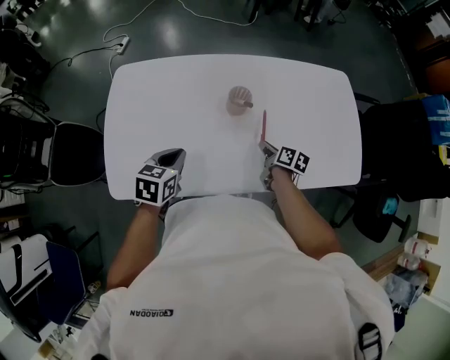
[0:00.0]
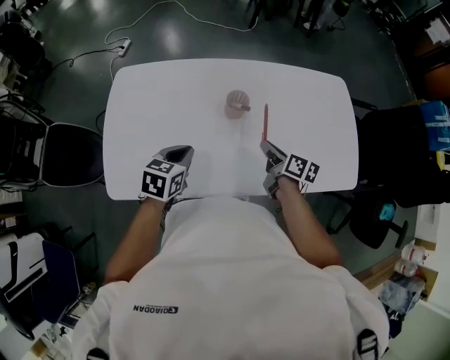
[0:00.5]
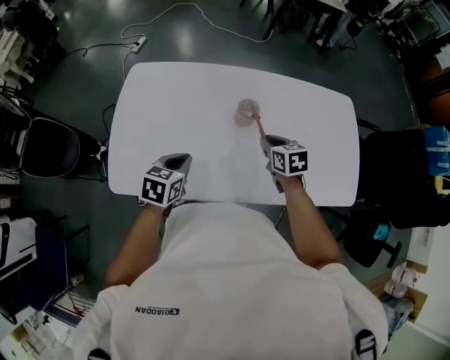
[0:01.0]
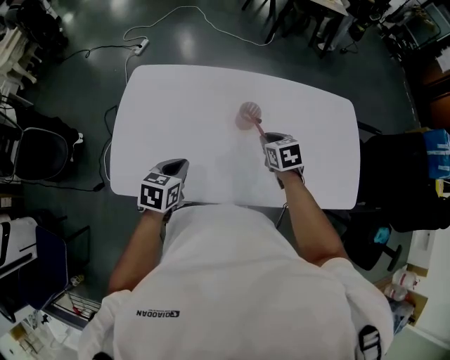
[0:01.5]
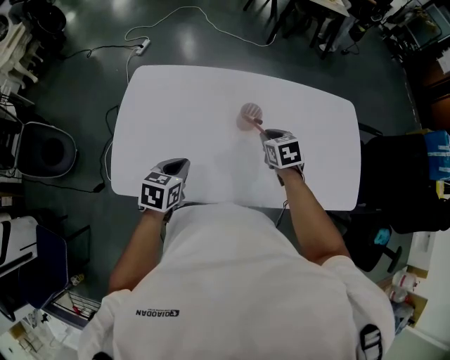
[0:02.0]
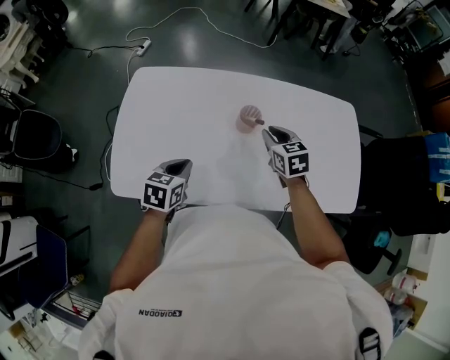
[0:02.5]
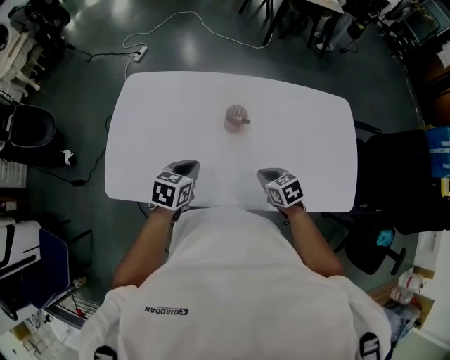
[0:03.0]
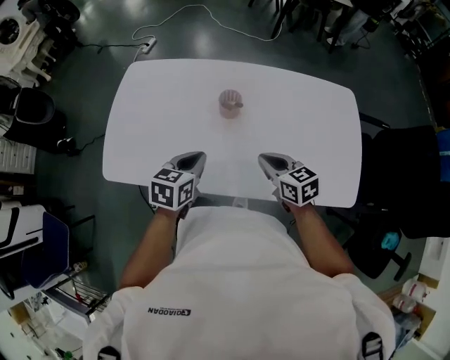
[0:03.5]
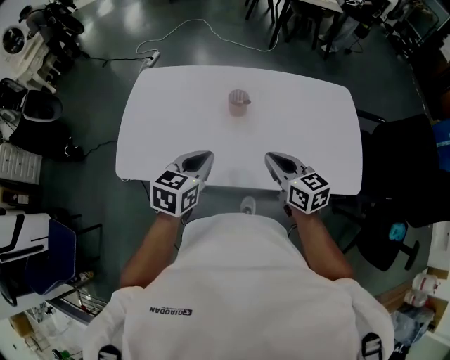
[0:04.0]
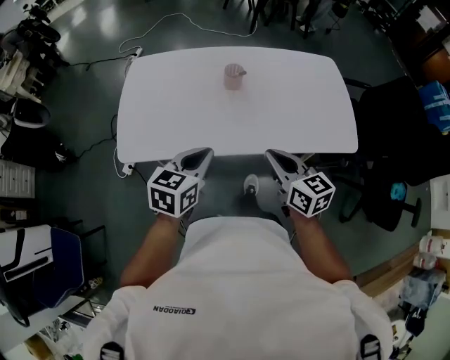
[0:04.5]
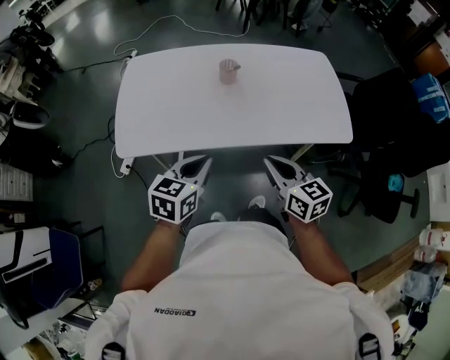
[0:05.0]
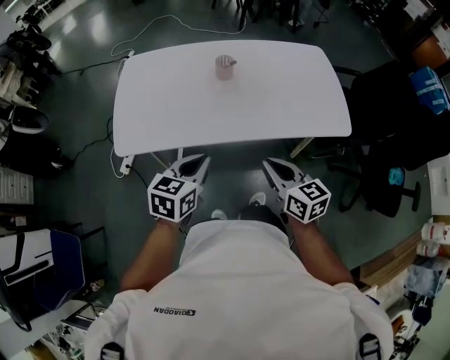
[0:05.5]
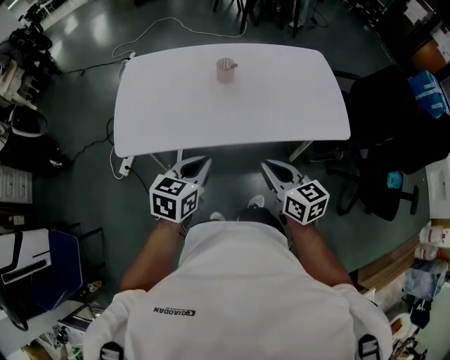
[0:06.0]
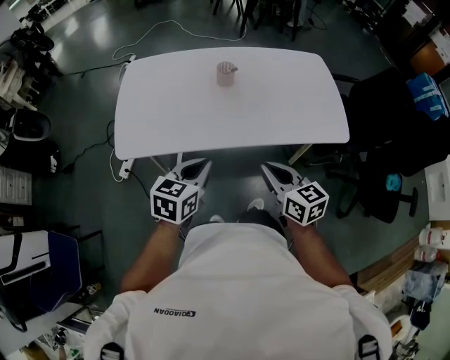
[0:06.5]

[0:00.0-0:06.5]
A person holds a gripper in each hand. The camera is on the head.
0:00.0 to 0:02.0: The right gripper shifts roughly 15 cm upward, to the left and forward, and twists roughly 60 degrees counterclockwise, seen from behind.
0:02.0 to 0:04.5: The left gripper is displaced backward, upward and to the right by approximately 25 cm; the right gripper travels backward and upward by some 35 cm, and tilts its fingers approximately 30 degrees upward.
0:04.5 to 0:06.5: Both grippers travel together backward, about 5 cm.

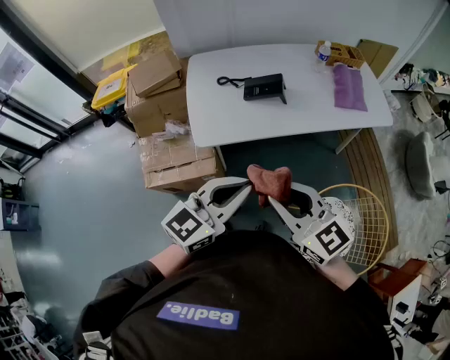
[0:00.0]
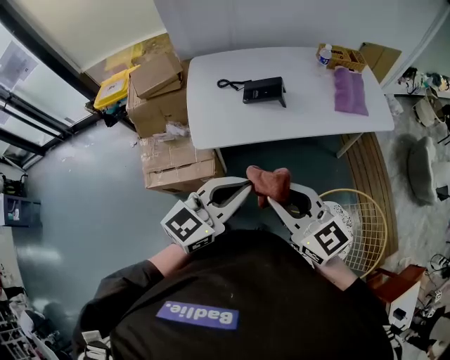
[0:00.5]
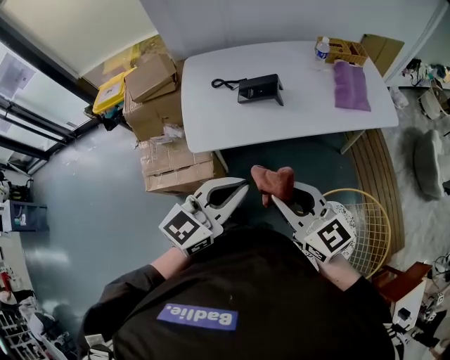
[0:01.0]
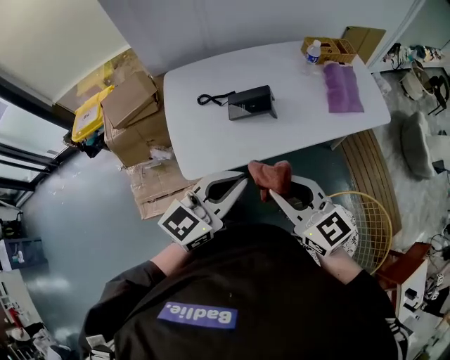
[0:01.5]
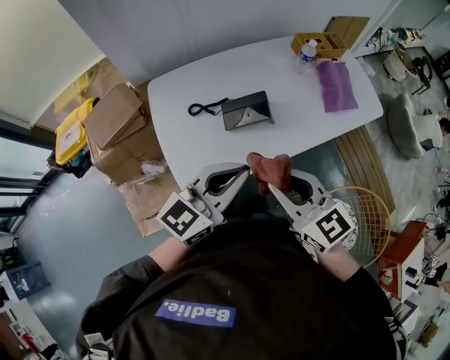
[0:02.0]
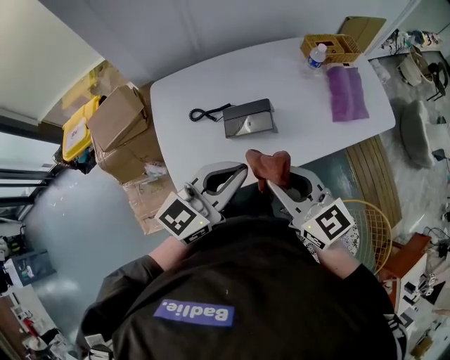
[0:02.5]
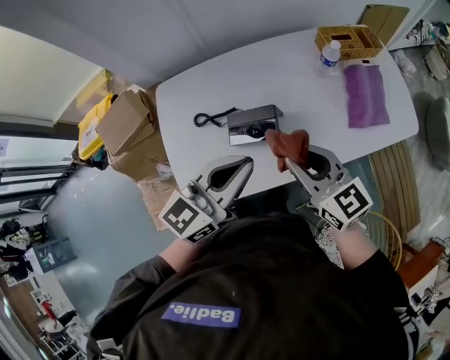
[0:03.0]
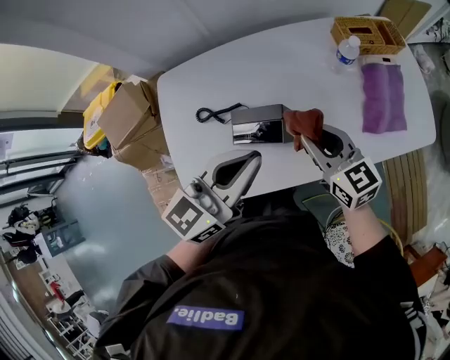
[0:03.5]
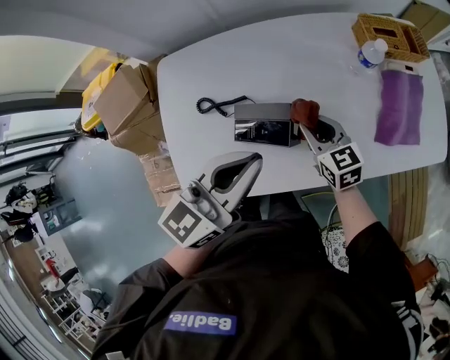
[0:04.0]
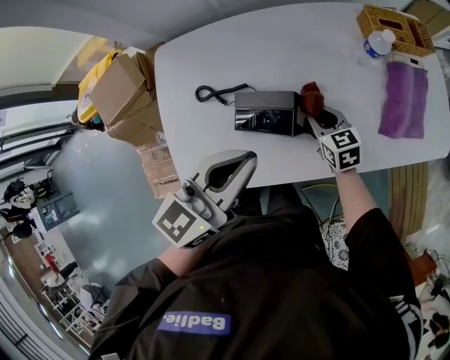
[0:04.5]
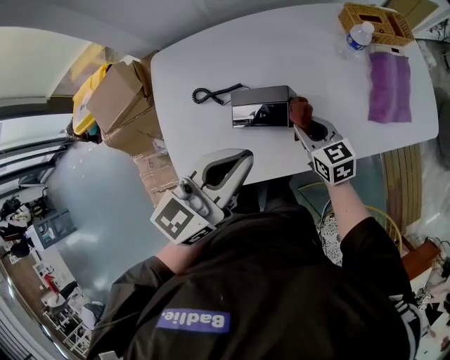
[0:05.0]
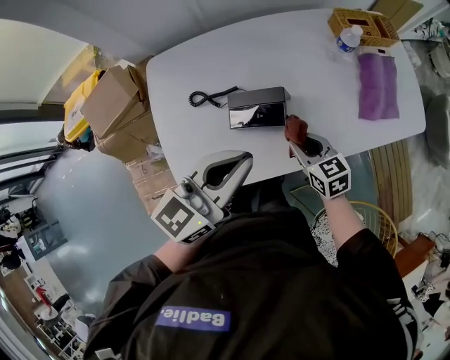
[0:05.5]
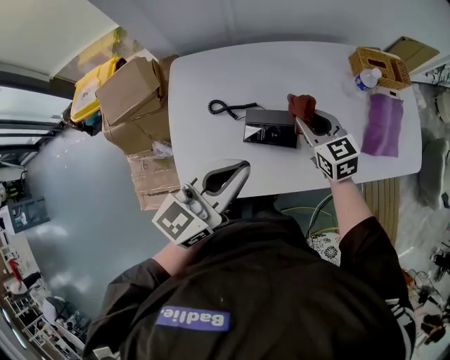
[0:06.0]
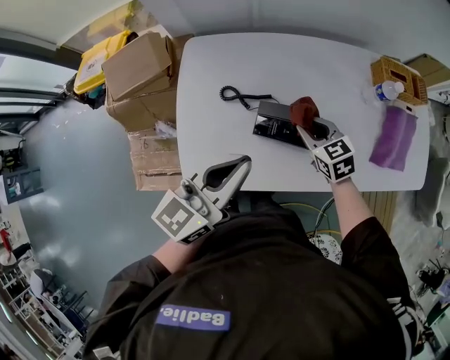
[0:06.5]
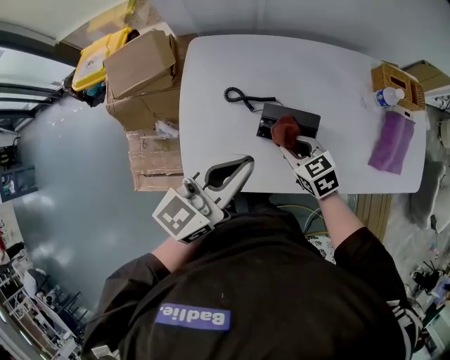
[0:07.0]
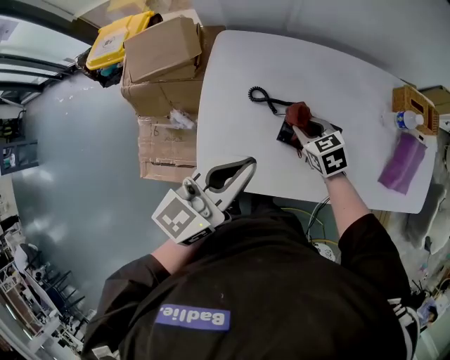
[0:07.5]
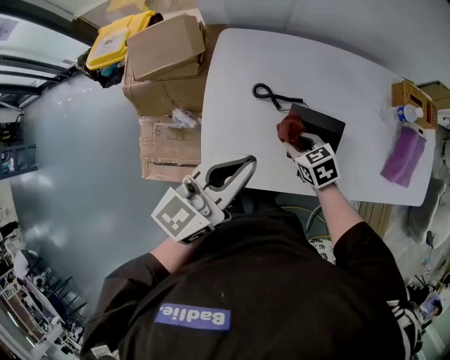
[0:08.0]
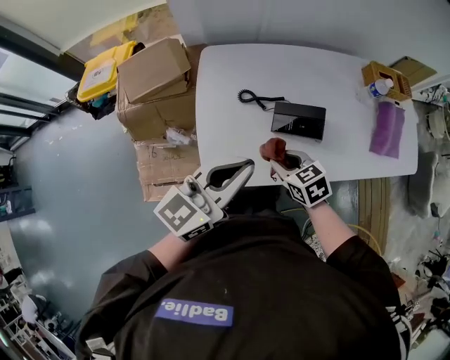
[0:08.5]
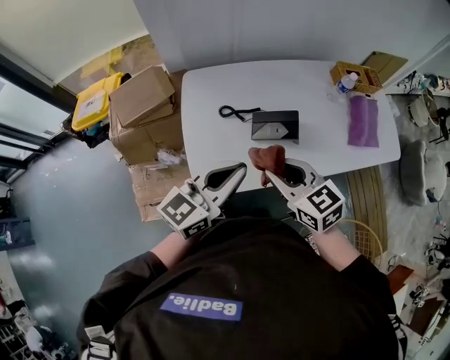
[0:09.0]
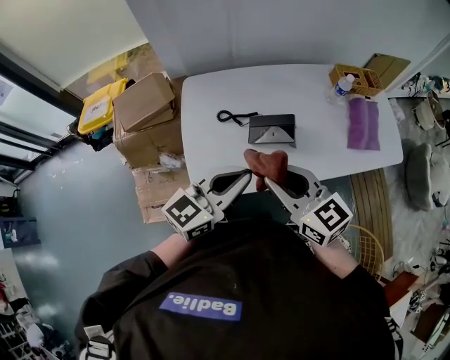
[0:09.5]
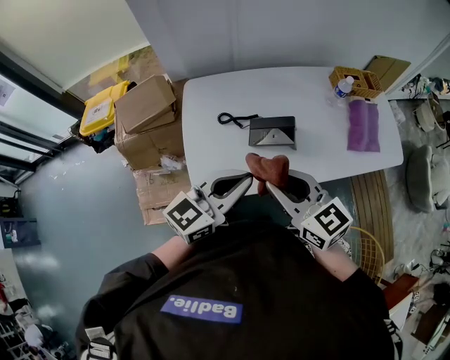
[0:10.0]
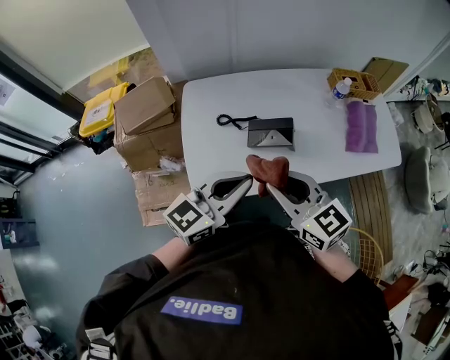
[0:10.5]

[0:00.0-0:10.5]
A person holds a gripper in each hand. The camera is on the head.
0:00.0 to 0:02.0: Both grippers move forward, about 25 cm.
0:02.0 to 0:04.0: The right gripper heads forward and downward, covering roughly 40 cm. Meanwhile the left gripper goes roughly 20 cm forward.
0:04.0 to 0:06.5: The right gripper swings up and down, roughly 15 cm each way, with 2 reversals, and changes its angle by roughly 20 degrees. Meanwhile the left gripper heads to the left, covering about 10 cm.
0:06.5 to 0:08.5: The right gripper is displaced to the left and backward by approximately 20 cm; the left gripper moves to the left and backward, some 10 cm.
0:08.5 to 0:10.5: The right gripper shifts approximately 20 cm upward, and tilts its fingers roughly 30 degrees upward. The left gripper is displaced to the right by some 10 cm.

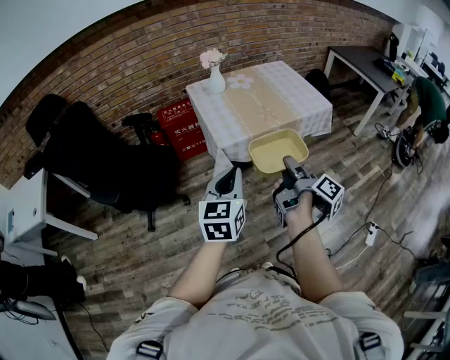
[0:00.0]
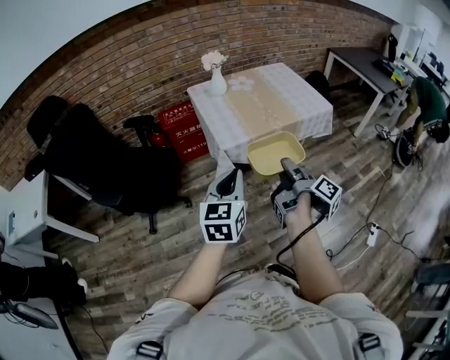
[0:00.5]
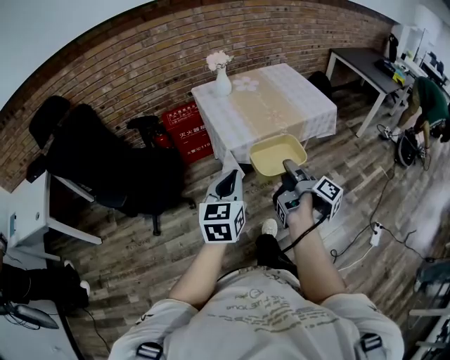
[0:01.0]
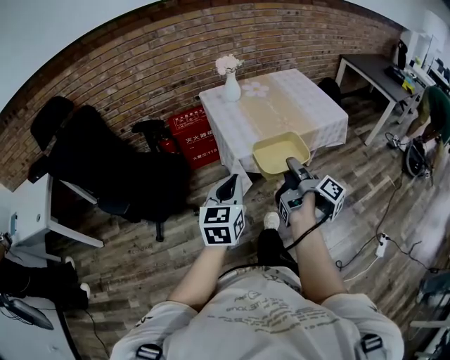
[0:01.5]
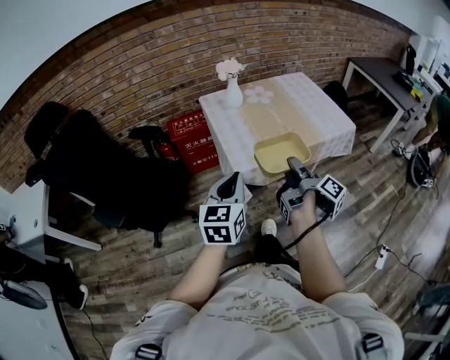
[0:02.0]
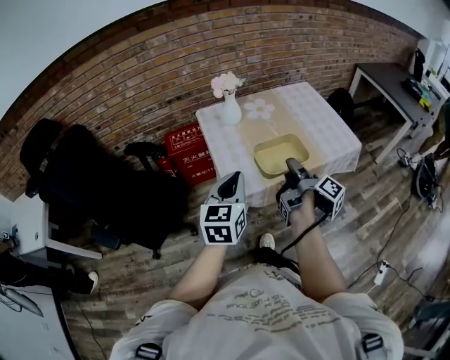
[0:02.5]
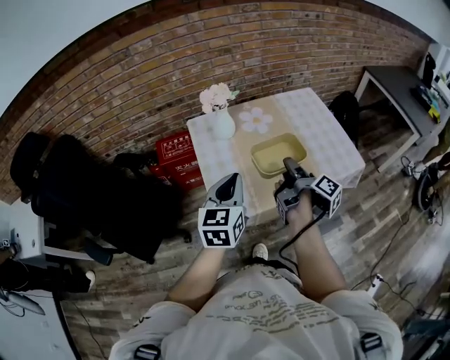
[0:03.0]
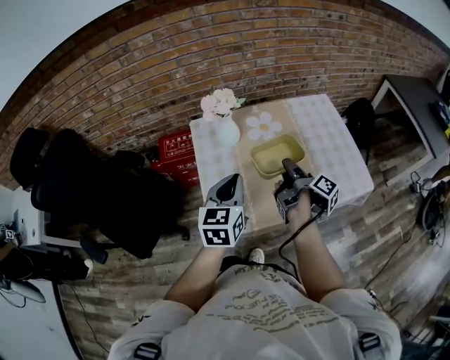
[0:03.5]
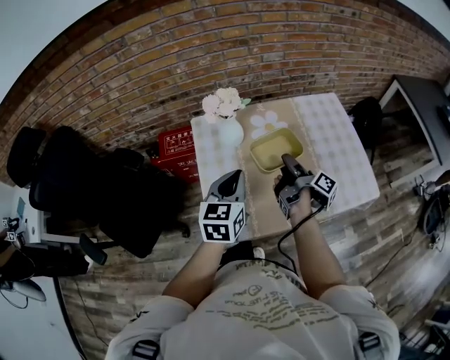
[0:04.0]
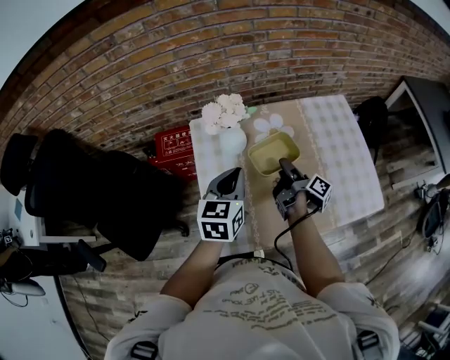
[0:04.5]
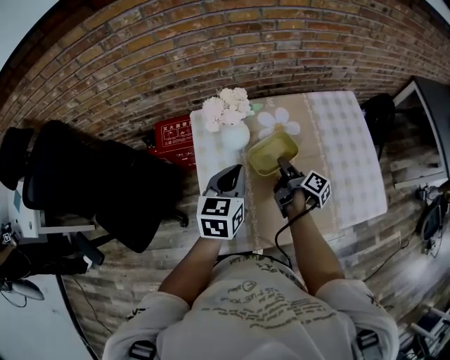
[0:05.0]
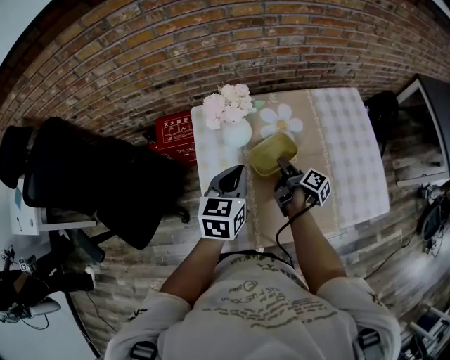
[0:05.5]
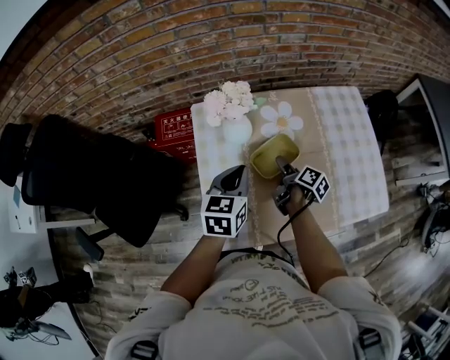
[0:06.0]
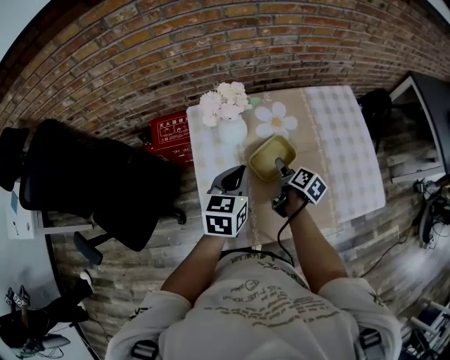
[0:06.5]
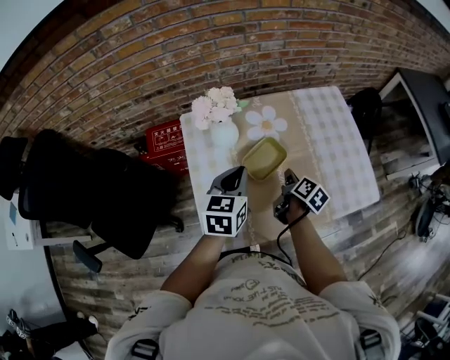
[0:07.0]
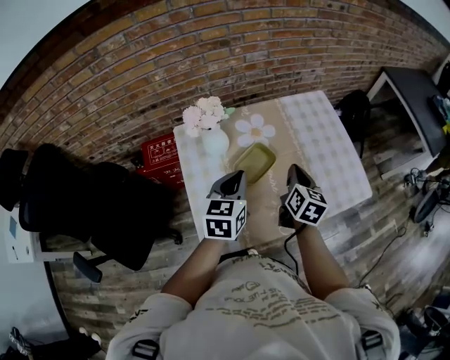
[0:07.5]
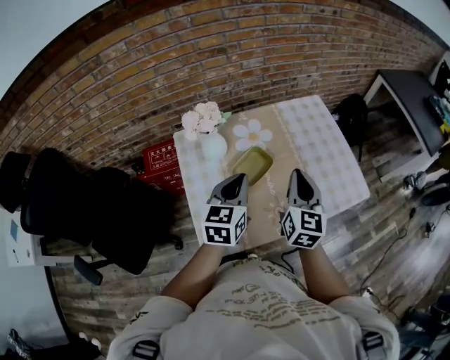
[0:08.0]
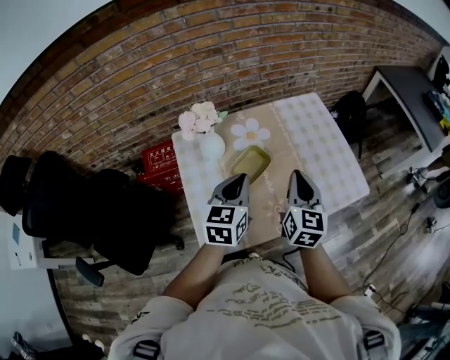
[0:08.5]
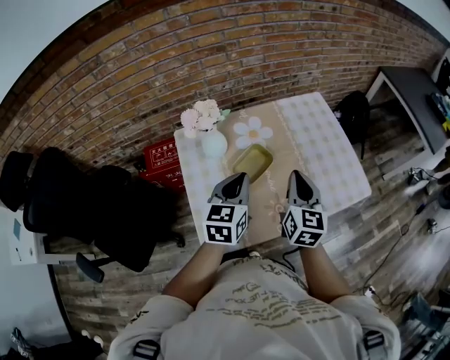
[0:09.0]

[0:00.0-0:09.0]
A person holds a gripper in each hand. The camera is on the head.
0:00.0 to 0:02.0: The left gripper shifts by roughly 15 cm.
0:02.0 to 0:04.5: The left gripper ends up some 50 cm from where it was.
0:07.0 to 0:09.0: The left gripper changes place by approximately 10 cm.

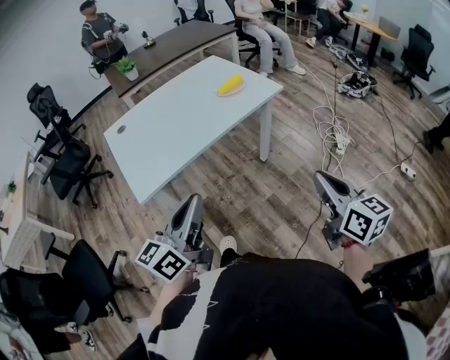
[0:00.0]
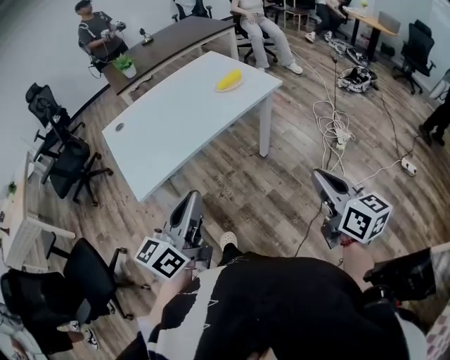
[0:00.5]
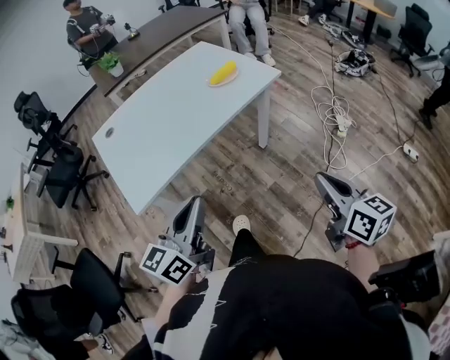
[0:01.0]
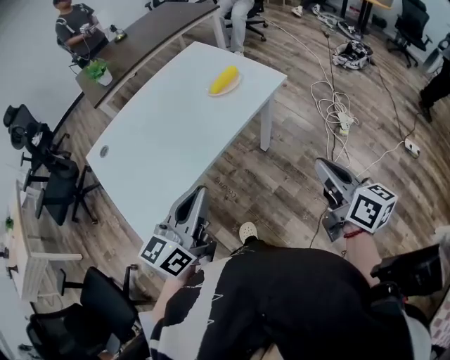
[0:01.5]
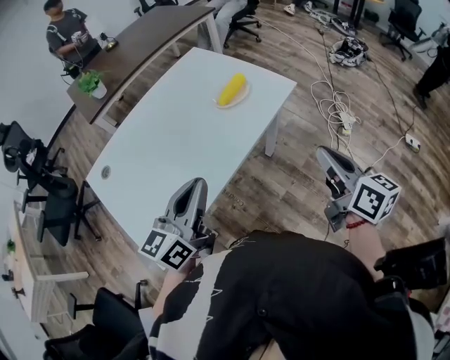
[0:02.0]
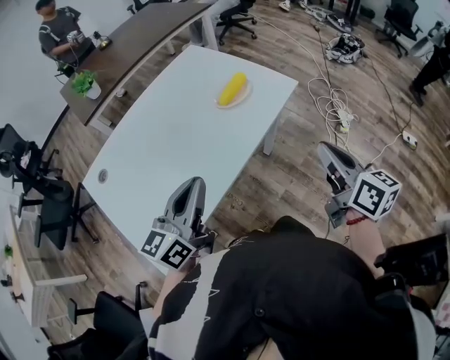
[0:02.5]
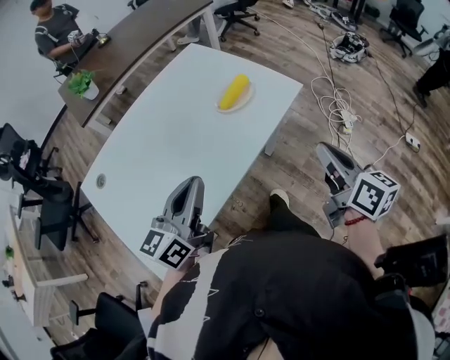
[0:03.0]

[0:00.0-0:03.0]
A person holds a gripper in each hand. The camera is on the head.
0:00.0 to 0:01.5: The grippers both shift forward by about 20 cm.
0:01.5 to 0:03.0: Both grippers travel together forward and to the left, roughly 20 cm.
